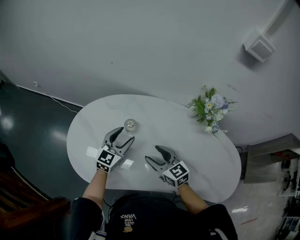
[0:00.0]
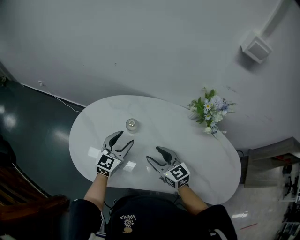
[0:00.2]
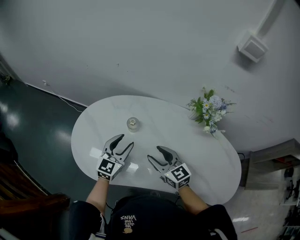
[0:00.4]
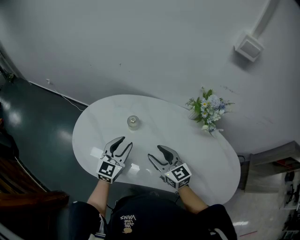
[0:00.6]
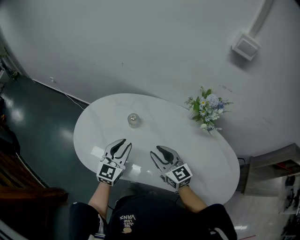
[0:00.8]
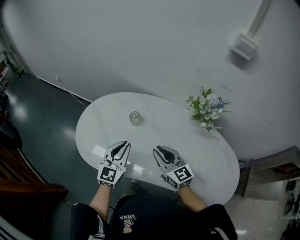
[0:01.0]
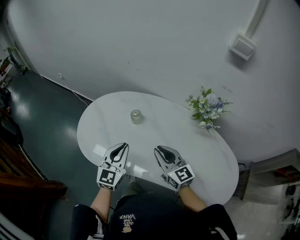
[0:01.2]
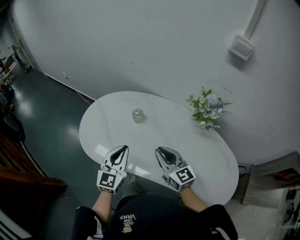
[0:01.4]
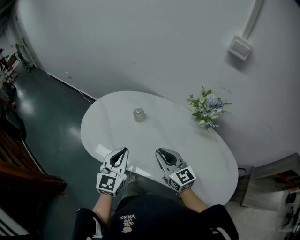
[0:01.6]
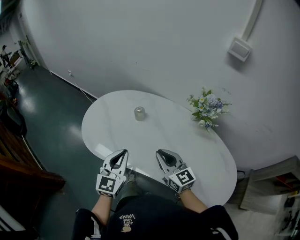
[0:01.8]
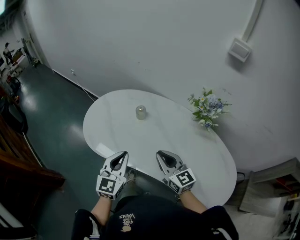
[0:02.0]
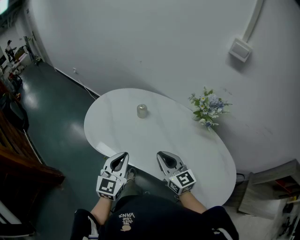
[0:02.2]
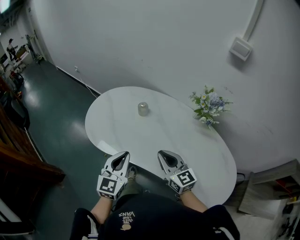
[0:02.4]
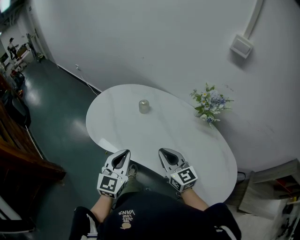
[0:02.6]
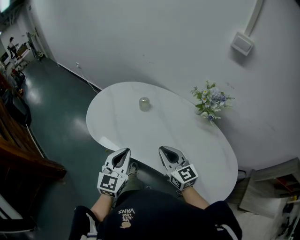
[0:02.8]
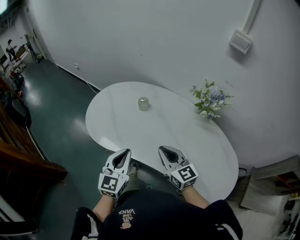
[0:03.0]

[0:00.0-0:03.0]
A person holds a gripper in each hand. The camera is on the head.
0:00.0 to 0:01.6: The right gripper goes about 15 cm backward and upward, and closes its fingers, while the left gripper shifts about 25 cm backward and upward, turns by roughly 30 degrees, and closes its fingers.
0:01.6 to 0:03.0: The two grippers go some 5 cm backward.

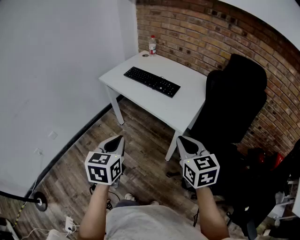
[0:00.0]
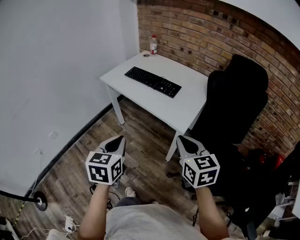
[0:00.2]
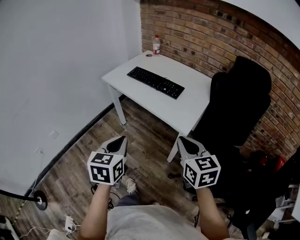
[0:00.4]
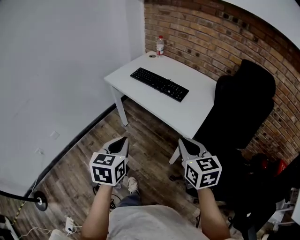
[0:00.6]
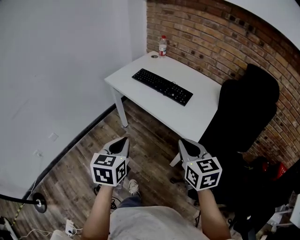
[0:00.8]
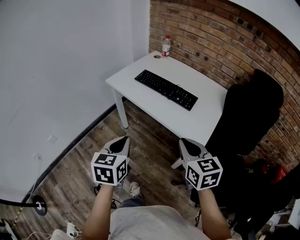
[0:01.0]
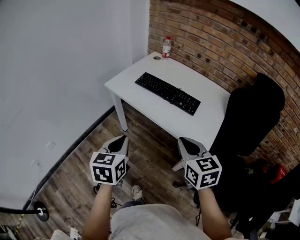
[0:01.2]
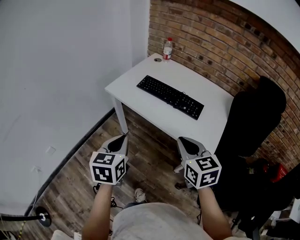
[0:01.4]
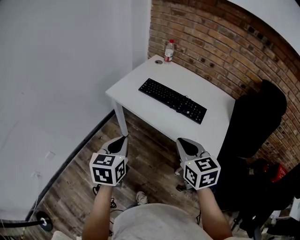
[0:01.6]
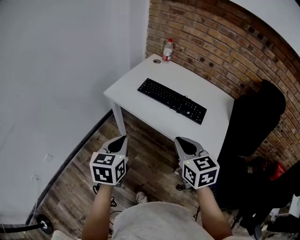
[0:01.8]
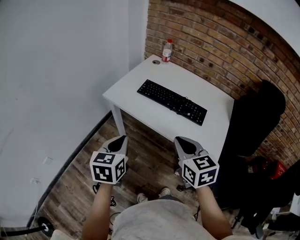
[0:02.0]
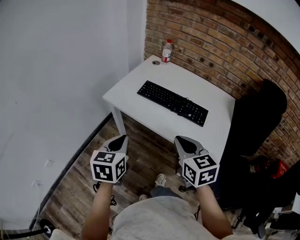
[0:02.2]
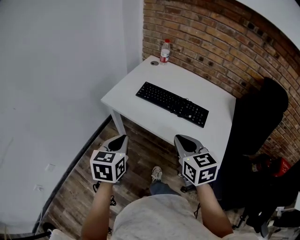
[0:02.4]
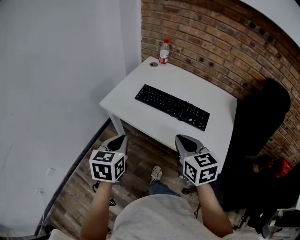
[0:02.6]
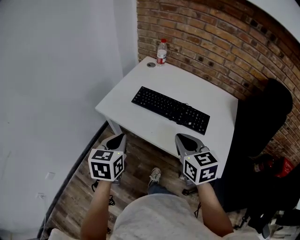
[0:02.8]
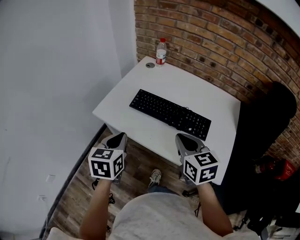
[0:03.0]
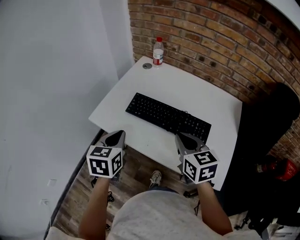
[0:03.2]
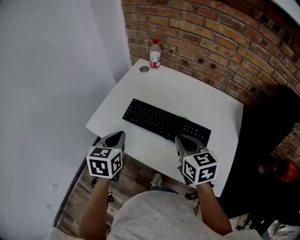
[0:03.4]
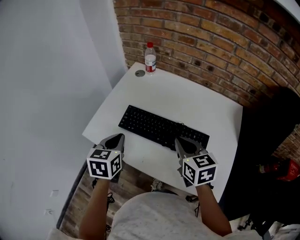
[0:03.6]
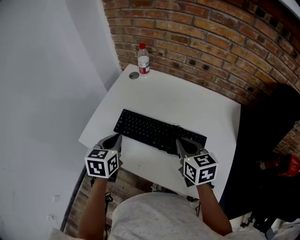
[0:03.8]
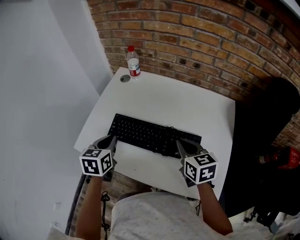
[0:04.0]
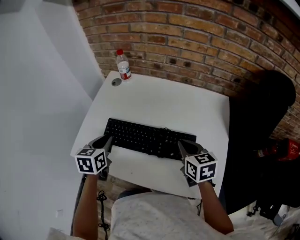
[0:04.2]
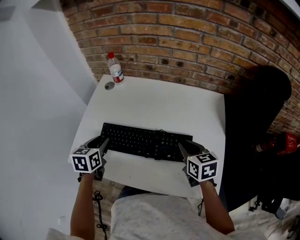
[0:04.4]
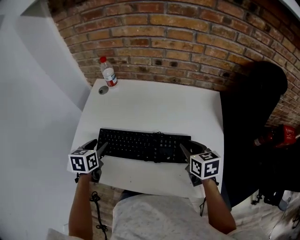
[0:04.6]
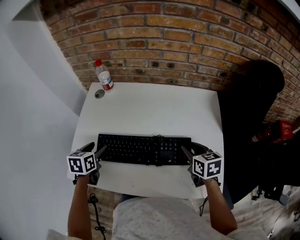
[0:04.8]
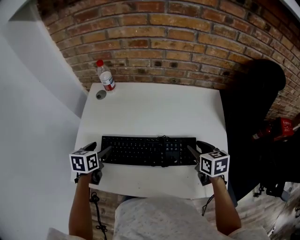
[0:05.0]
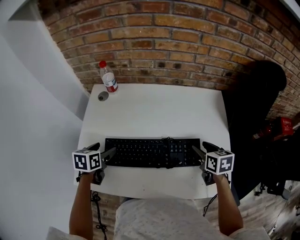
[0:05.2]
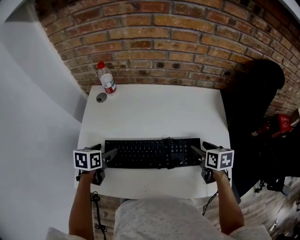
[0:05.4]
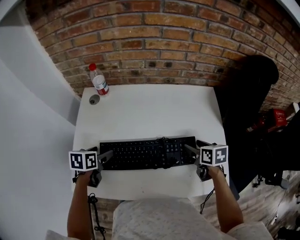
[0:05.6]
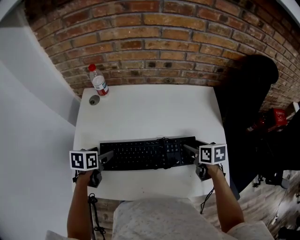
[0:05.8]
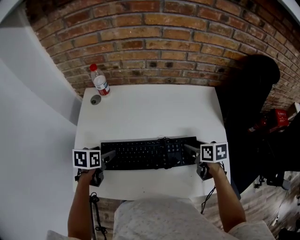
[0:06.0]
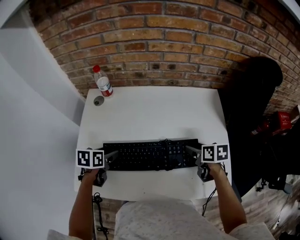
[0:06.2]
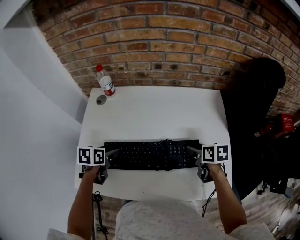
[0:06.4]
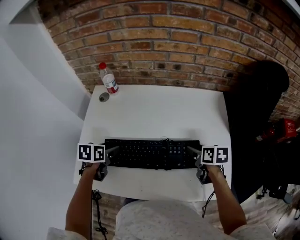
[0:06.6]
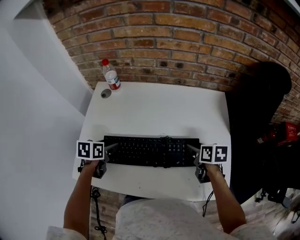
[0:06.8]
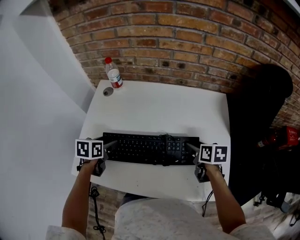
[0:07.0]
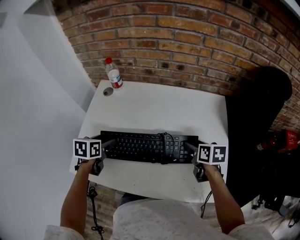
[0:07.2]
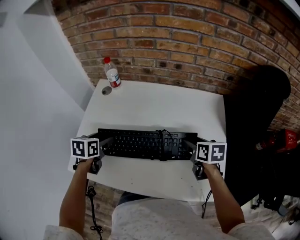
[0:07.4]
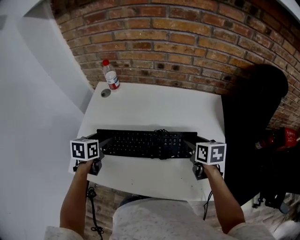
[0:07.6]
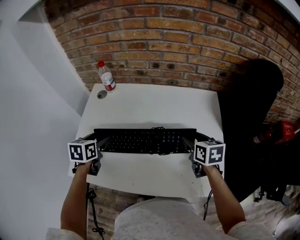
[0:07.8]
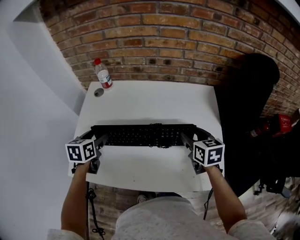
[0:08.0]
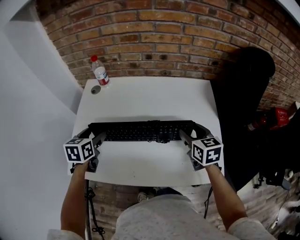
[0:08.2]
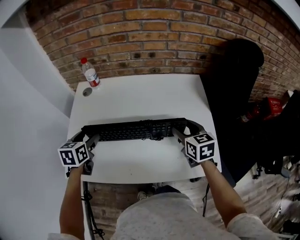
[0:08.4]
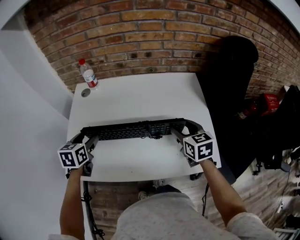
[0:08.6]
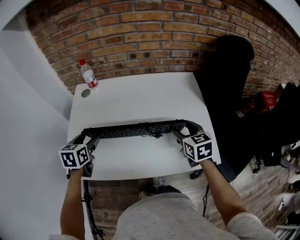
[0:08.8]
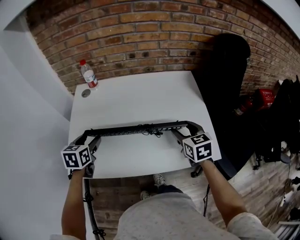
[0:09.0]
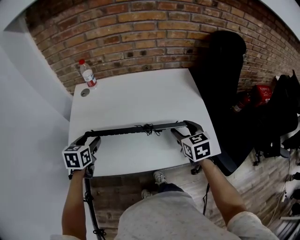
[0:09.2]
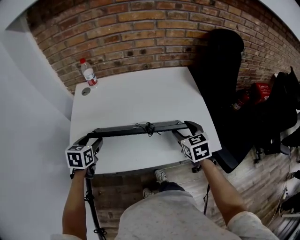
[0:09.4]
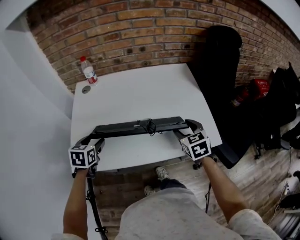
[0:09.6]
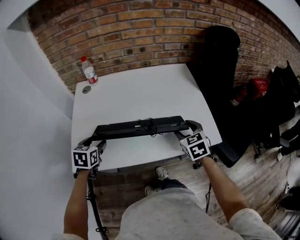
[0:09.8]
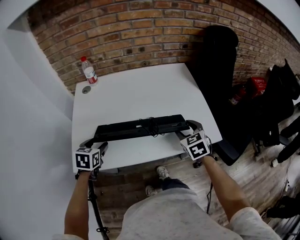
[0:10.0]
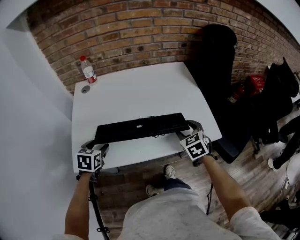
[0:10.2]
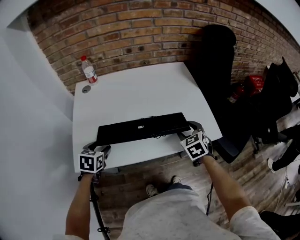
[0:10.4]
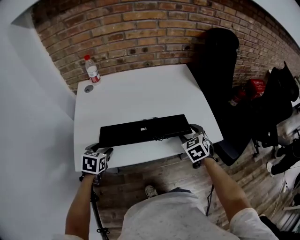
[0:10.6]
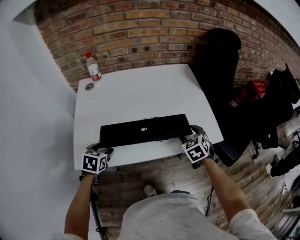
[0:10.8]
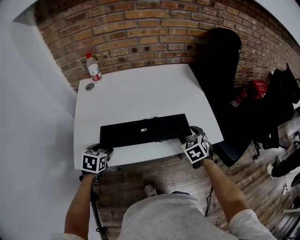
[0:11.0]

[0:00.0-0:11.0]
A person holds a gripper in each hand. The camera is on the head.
0:00.0 to 0:01.6: The two grippers go about 30 cm forward and to the left.
0:01.6 to 0:03.2: Both grippers travel together forward, approximately 25 cm.
0:03.2 to 0:04.8: The right gripper goes about 25 cm to the right, forward and downward, rotates some 30 degrees, and opens; the left gripper goes roughly 25 cm forward, changes its angle by approximately 20 degrees, and opens its fingers.
0:04.8 to 0:06.2: The right gripper changes its angle by roughly 20 degrees, and opens.
0:06.2 to 0:07.8: The two grippers go approximately 5 cm upward.
0:07.8 to 0:09.4: The right gripper shifts about 15 cm backward, and rotates some 20 degrees; the left gripper heads backward, covering approximately 10 cm.
0:09.4 to 0:11.0: The right gripper travels downward and backward by roughly 10 cm, and changes its angle by roughly 20 degrees; the left gripper heads backward and downward, covering some 10 cm.

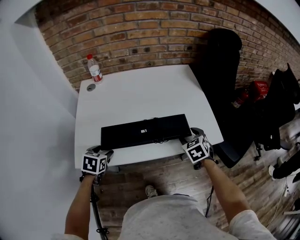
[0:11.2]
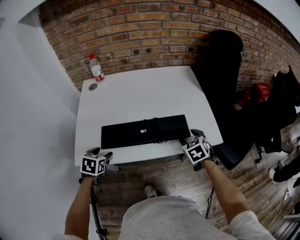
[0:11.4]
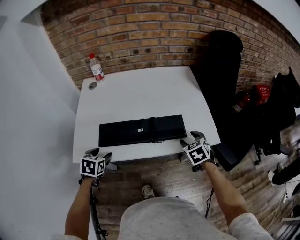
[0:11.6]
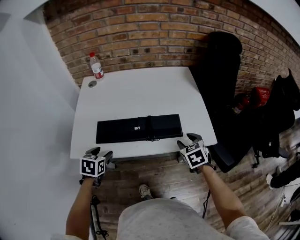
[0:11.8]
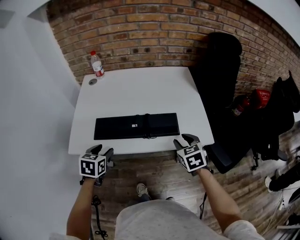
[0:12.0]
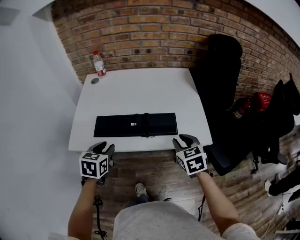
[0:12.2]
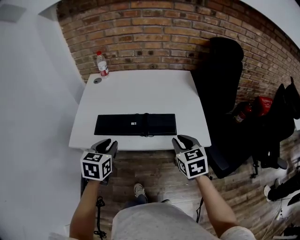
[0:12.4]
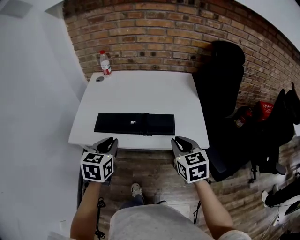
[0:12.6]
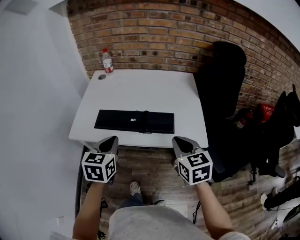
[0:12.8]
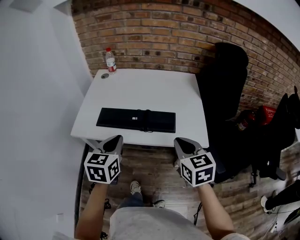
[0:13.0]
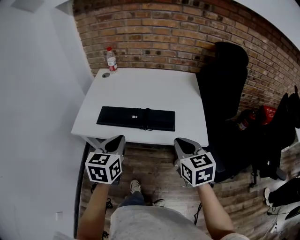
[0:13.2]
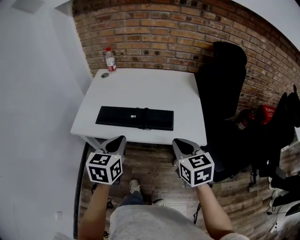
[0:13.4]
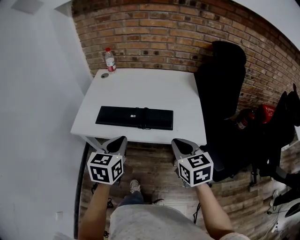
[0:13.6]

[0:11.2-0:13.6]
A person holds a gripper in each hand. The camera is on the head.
0:11.2 to 0:12.4: The left gripper moves to the right, upward and backward, some 20 cm, swivels roughly 20 degrees, and closes its fingers, while the right gripper shifts some 15 cm upward and backward, changes its angle by some 20 degrees, and closes its fingers.
0:12.4 to 0:13.6: The left gripper is displaced to the right and backward by roughly 10 cm. The right gripper moves backward, about 5 cm.

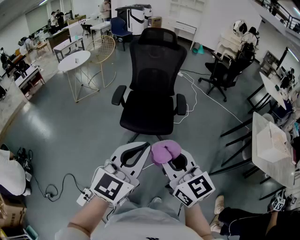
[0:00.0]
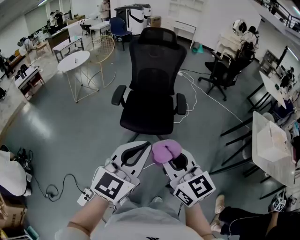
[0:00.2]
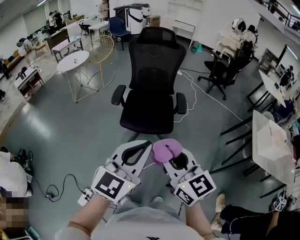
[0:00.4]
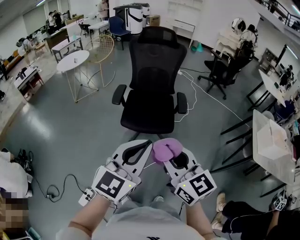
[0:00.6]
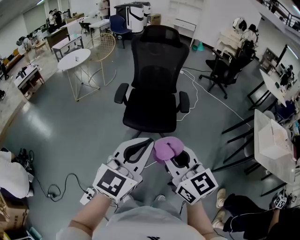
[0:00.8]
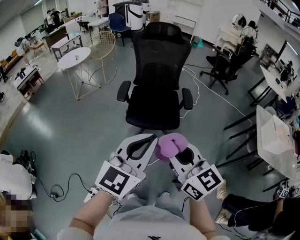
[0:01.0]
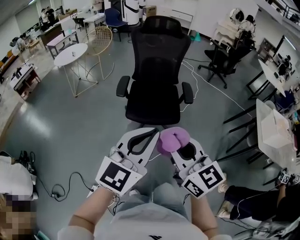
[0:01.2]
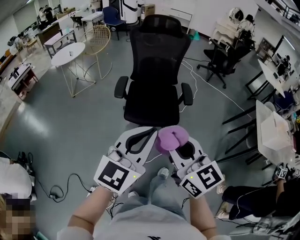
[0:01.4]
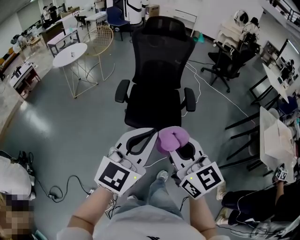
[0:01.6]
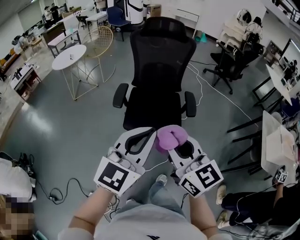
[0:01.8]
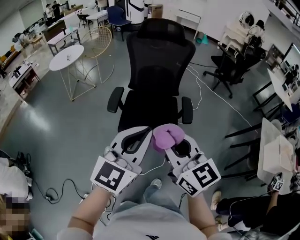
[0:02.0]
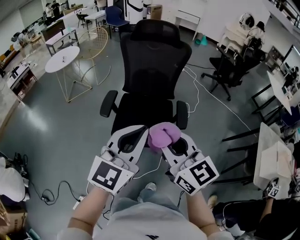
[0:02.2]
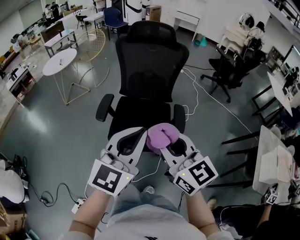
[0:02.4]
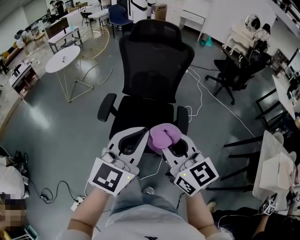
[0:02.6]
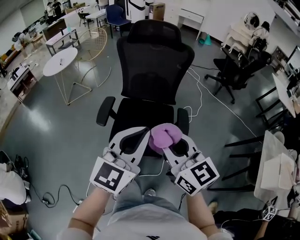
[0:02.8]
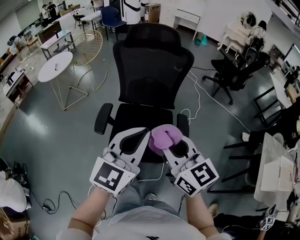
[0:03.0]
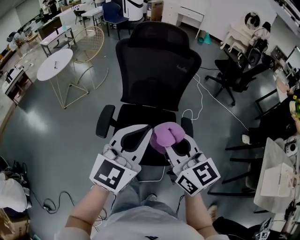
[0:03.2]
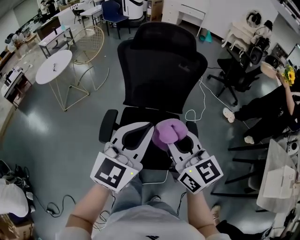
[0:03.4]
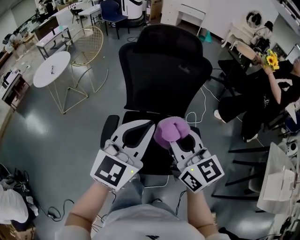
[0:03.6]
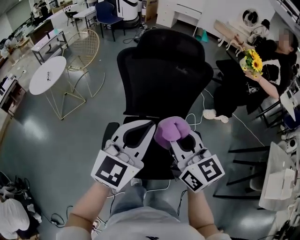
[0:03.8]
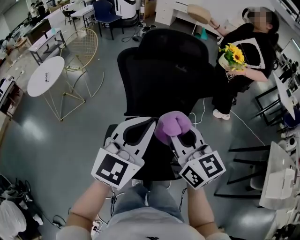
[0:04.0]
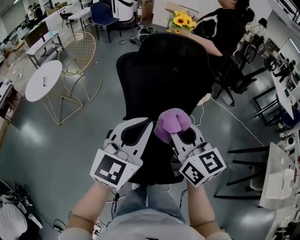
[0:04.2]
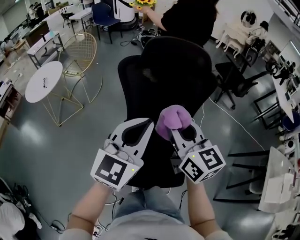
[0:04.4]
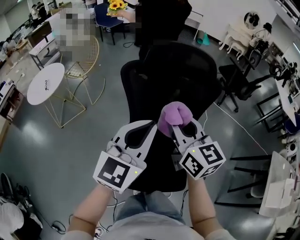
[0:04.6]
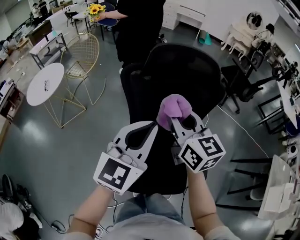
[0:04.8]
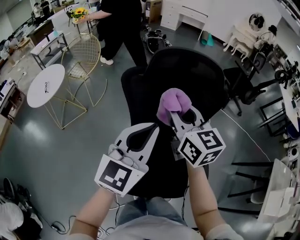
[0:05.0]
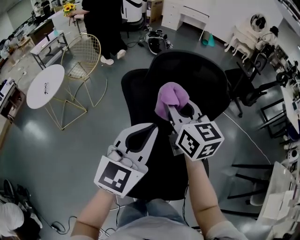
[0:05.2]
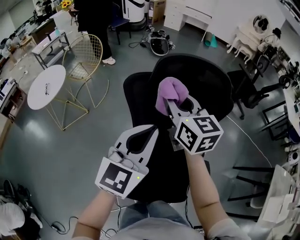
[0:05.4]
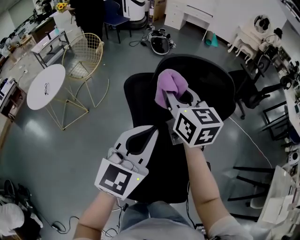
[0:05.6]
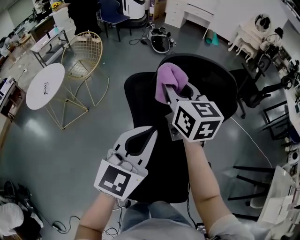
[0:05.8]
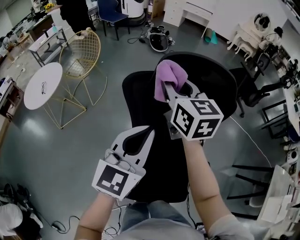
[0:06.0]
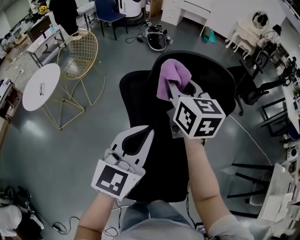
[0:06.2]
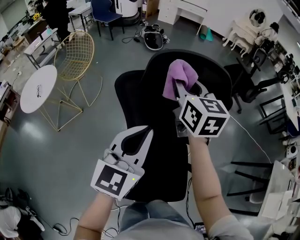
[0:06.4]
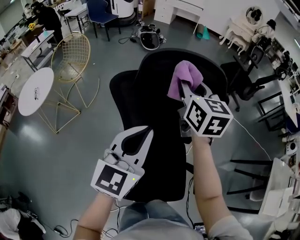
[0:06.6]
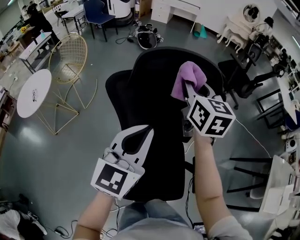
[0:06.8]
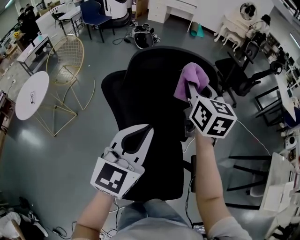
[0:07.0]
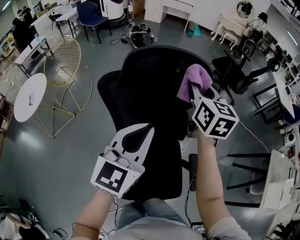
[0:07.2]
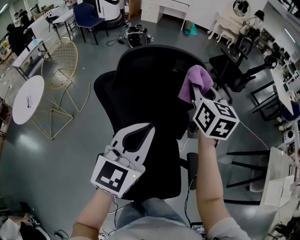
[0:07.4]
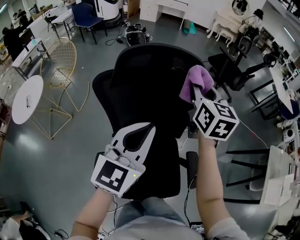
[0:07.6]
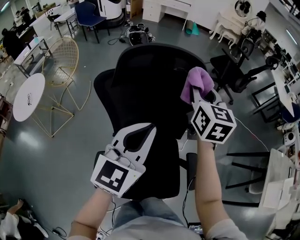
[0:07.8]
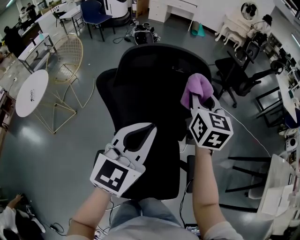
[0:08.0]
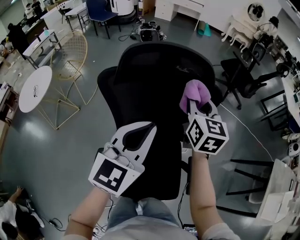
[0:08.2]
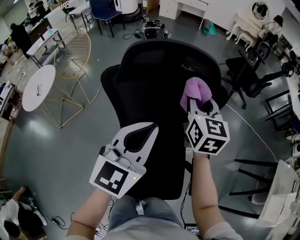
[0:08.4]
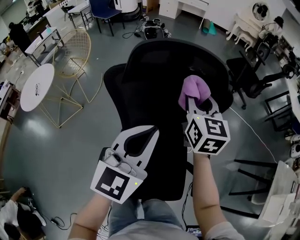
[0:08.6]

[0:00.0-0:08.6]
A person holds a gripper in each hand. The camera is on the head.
0:00.0 to 0:01.4: The two grippers go approximately 5 cm to the left.
0:01.4 to 0:02.8: Both grippers travel together forward and to the right, approximately 30 cm.
0:02.8 to 0:04.4: The right gripper goes some 30 cm forward. Meanwhile the left gripper goes some 30 cm forward and to the left.
0:04.4 to 0:05.8: The right gripper heads forward, covering some 25 cm. Meanwhile the left gripper is displaced forward by approximately 10 cm.
0:05.8 to 0:07.2: The left gripper moves to the right, about 5 cm, while the right gripper heads to the right, covering about 20 cm, and changes its angle by approximately 20 degrees.
0:07.2 to 0:08.6: The right gripper shifts approximately 5 cm downward.
